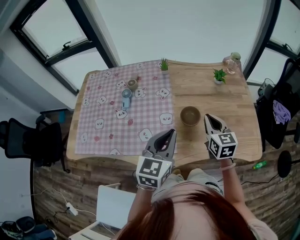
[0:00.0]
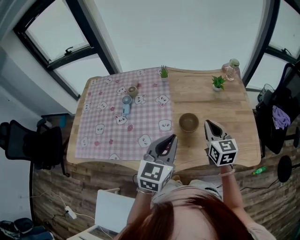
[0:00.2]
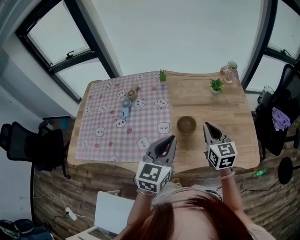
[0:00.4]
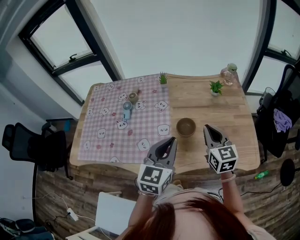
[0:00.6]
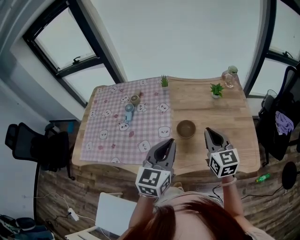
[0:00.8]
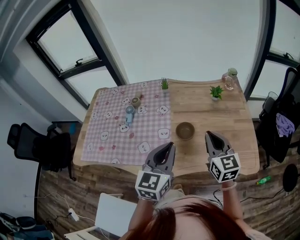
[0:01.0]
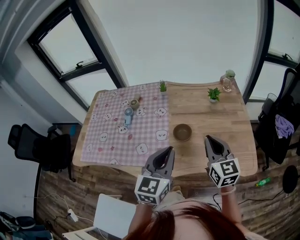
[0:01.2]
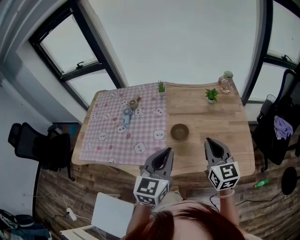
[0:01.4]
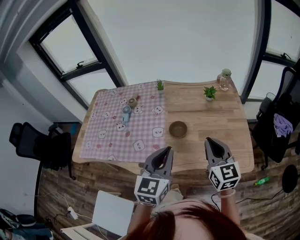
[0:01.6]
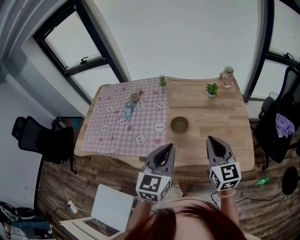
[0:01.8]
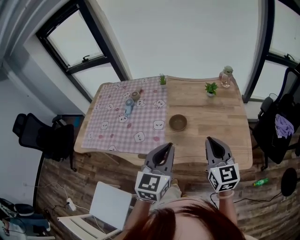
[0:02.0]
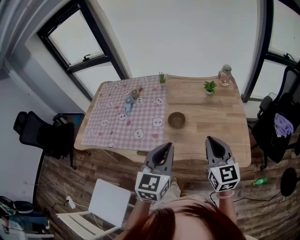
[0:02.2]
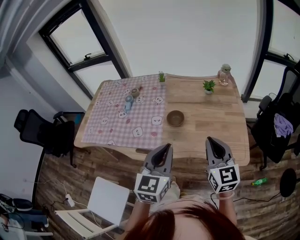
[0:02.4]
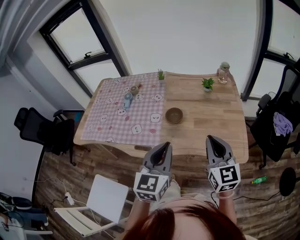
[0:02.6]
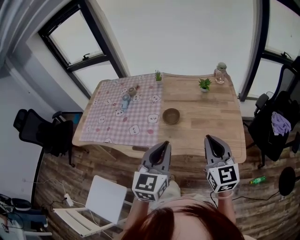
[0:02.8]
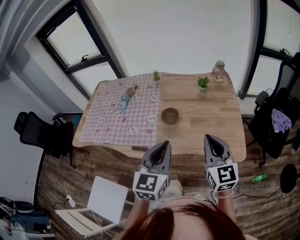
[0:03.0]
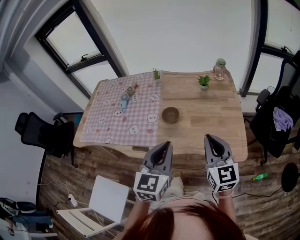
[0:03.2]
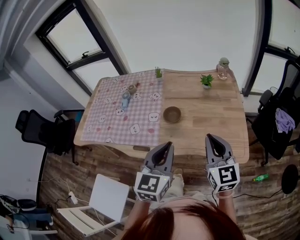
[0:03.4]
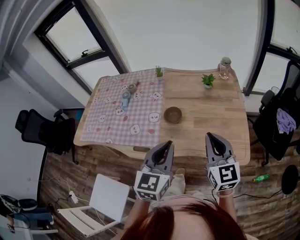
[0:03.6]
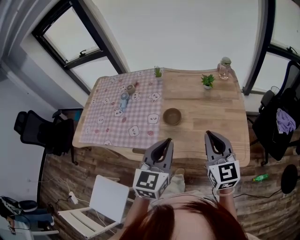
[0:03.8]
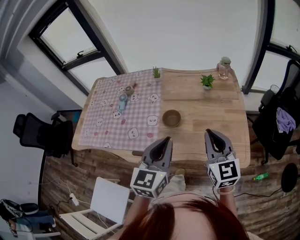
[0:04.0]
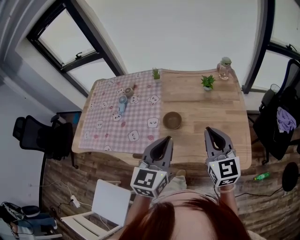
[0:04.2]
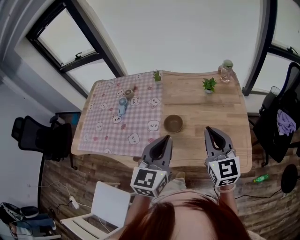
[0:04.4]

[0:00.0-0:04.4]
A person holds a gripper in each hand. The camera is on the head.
0:00.0 to 0:01.4: The left gripper is displaced to the right, backward and upward by about 10 cm; the right gripper goes roughly 15 cm upward, backward and to the right.
0:01.4 to 0:03.0: The grippers both shift backward and to the right by about 15 cm.
0:03.0 to 0:04.4: The grippers both shift forward by about 10 cm.

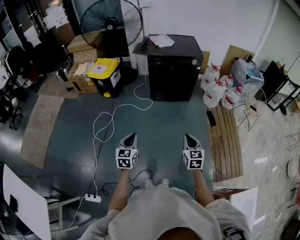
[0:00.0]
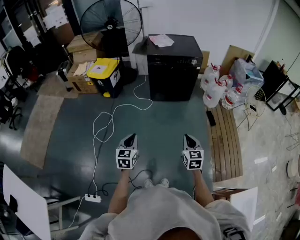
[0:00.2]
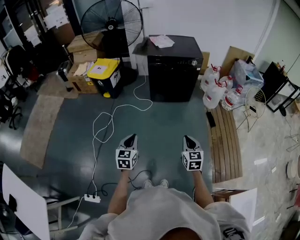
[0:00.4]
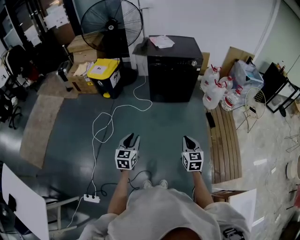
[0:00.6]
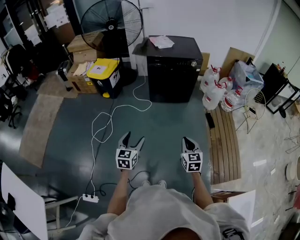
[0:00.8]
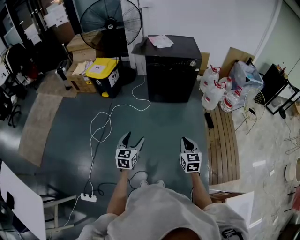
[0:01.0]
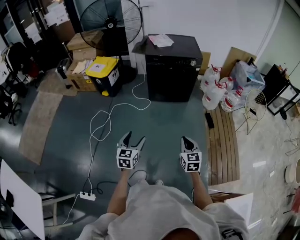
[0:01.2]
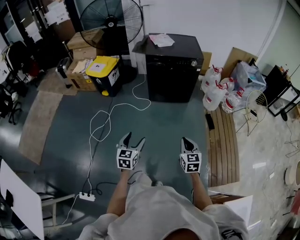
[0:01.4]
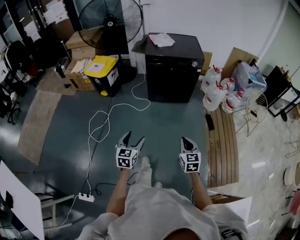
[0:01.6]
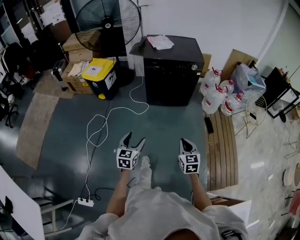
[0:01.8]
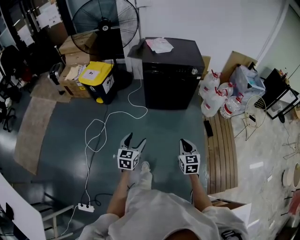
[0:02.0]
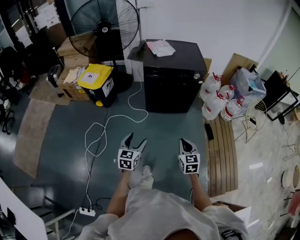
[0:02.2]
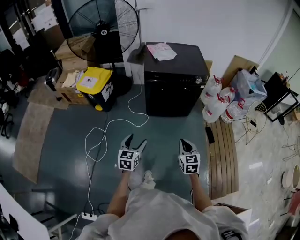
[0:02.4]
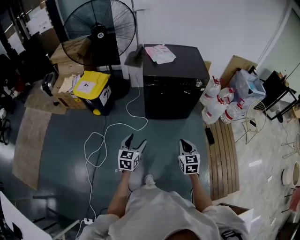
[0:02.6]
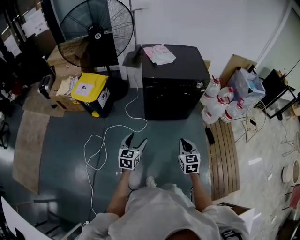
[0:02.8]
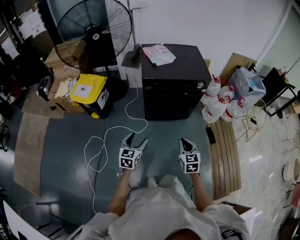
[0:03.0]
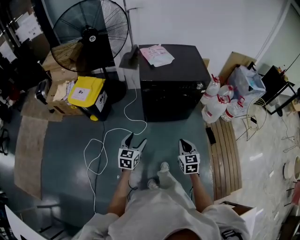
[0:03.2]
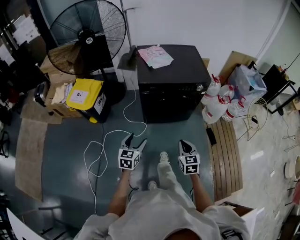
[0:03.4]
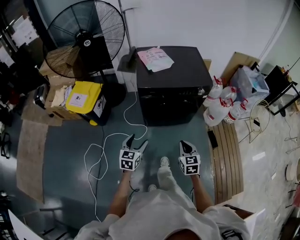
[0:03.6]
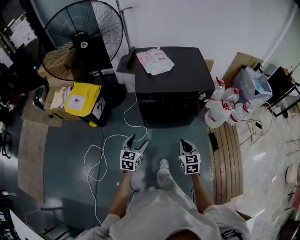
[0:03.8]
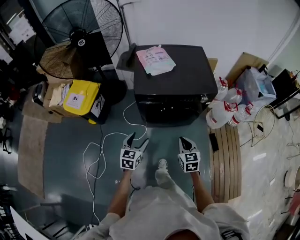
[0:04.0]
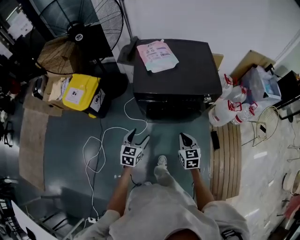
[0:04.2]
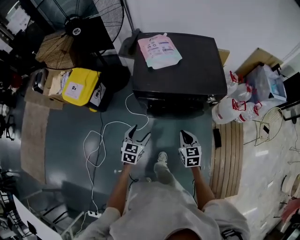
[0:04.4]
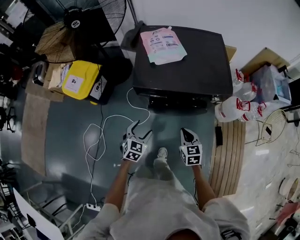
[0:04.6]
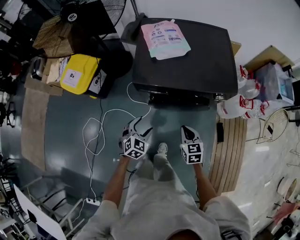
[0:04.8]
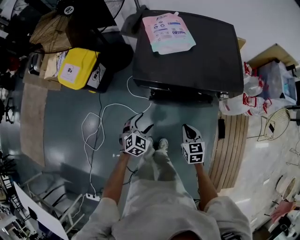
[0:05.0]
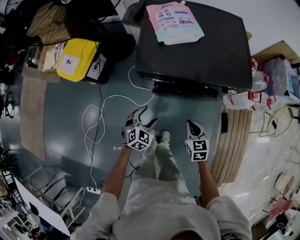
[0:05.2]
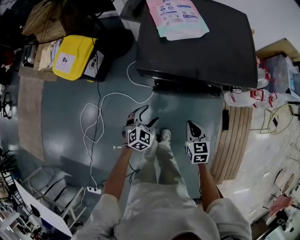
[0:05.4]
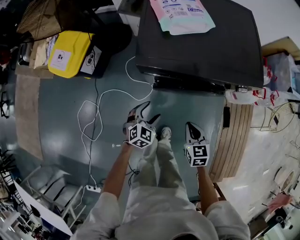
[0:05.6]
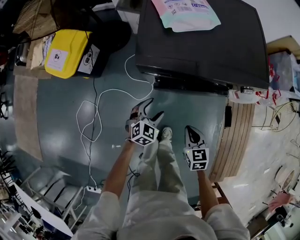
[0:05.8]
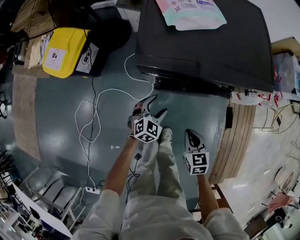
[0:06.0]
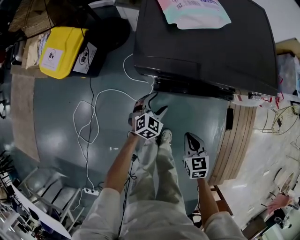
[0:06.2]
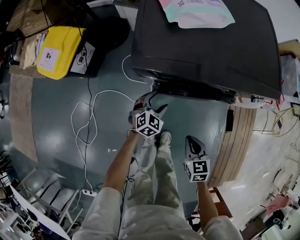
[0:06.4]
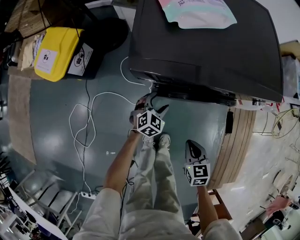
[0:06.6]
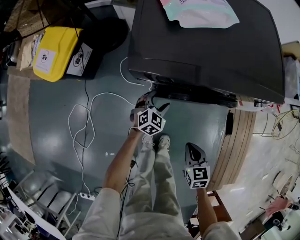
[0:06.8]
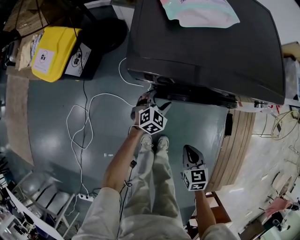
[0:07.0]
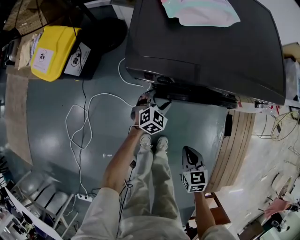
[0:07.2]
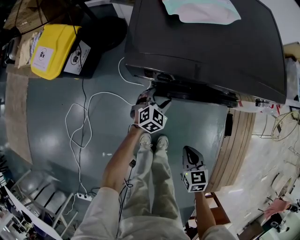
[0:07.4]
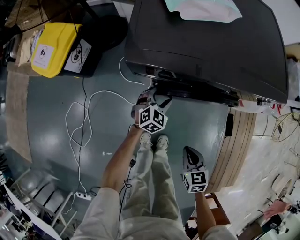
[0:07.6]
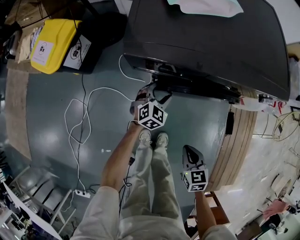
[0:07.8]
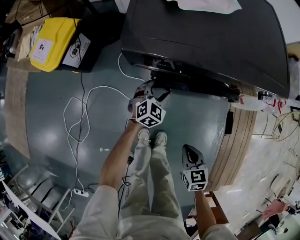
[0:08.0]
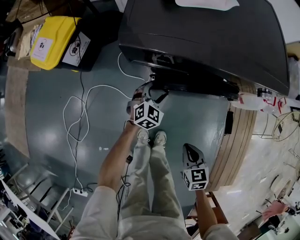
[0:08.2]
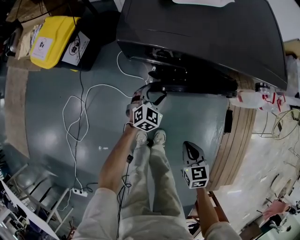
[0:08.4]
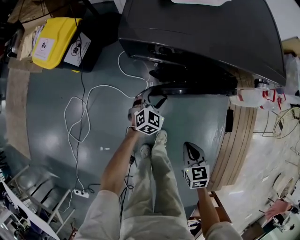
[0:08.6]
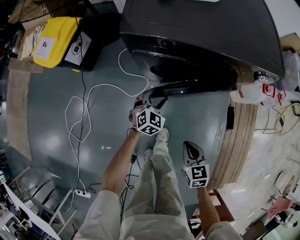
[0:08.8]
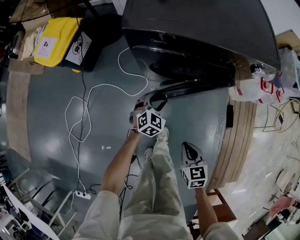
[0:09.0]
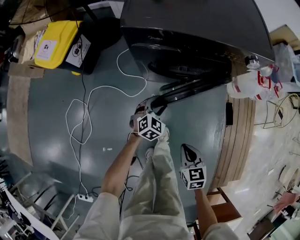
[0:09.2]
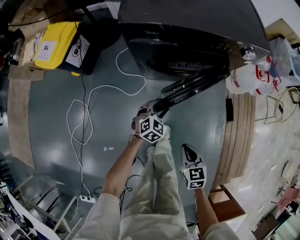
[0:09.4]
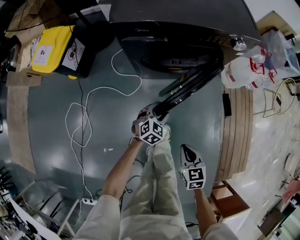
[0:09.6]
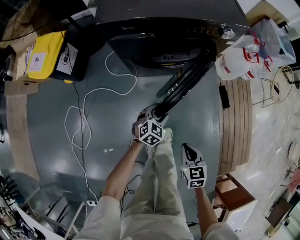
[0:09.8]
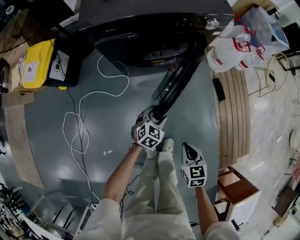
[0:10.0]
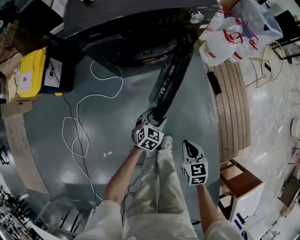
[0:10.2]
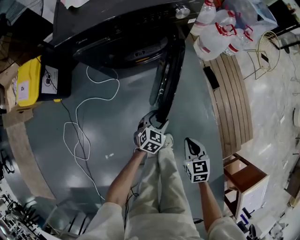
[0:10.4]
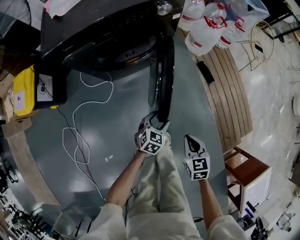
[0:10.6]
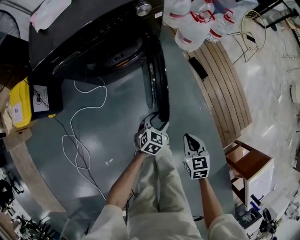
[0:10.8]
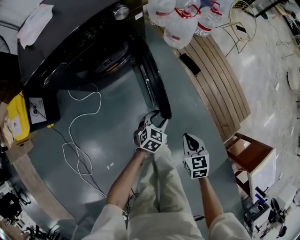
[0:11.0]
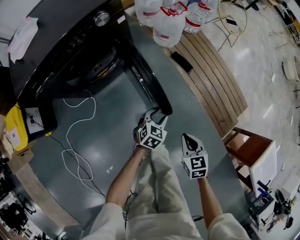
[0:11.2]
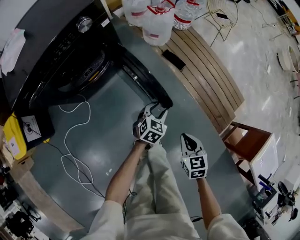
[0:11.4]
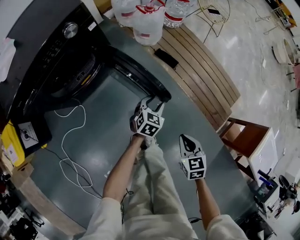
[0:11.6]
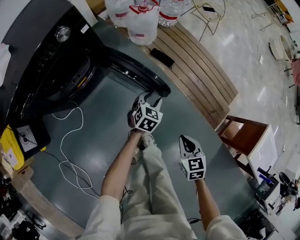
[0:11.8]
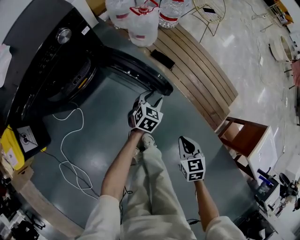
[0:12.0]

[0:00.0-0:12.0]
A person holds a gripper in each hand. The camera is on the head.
0:00.0 to 0:01.6: The left gripper heads forward and to the right, covering roughly 10 cm, and opens. Meanwhile the right gripper is displaced forward by roughly 5 cm.
0:01.6 to 0:03.0: The two grippers go some 35 cm forward.
0:03.0 to 0:04.4: The grippers both shift forward by approximately 30 cm.
0:04.4 to 0:06.0: The right gripper is displaced downward by some 20 cm; the left gripper shifts about 25 cm downward and forward, and turns by roughly 30 degrees.
0:06.0 to 0:07.6: The right gripper moves downward, roughly 10 cm. Meanwhile the left gripper is displaced downward and forward by approximately 15 cm.
0:07.6 to 0:09.0: The grippers both shift backward by approximately 10 cm.
0:09.0 to 0:10.4: The right gripper ends up some 20 cm from where it was, and swivels some 20 degrees; the left gripper shifts by some 30 cm, and turns by about 20 degrees.
0:10.4 to 0:12.0: The right gripper moves about 20 cm, and turns by roughly 30 degrees. The left gripper shifts by about 30 cm, and rotates about 20 degrees.

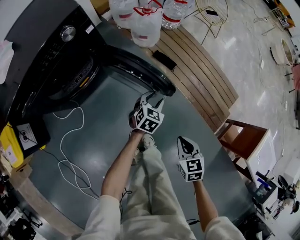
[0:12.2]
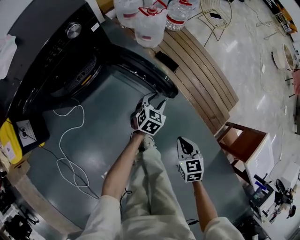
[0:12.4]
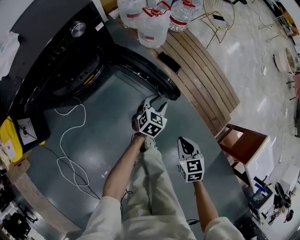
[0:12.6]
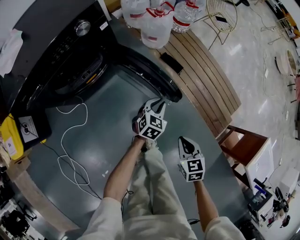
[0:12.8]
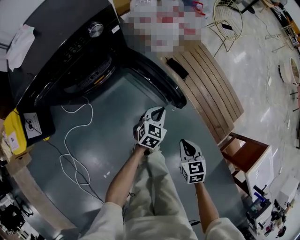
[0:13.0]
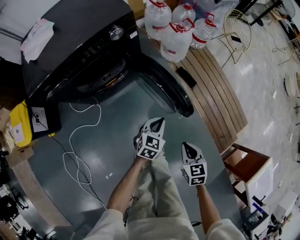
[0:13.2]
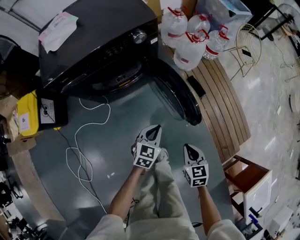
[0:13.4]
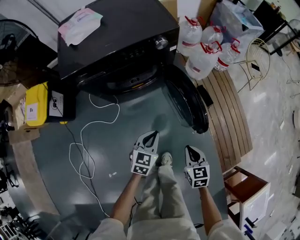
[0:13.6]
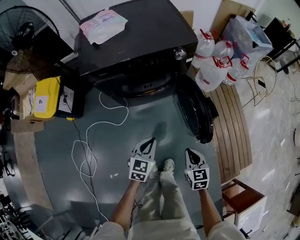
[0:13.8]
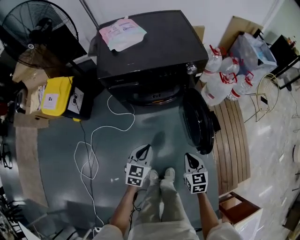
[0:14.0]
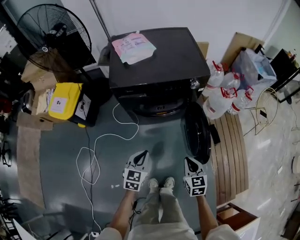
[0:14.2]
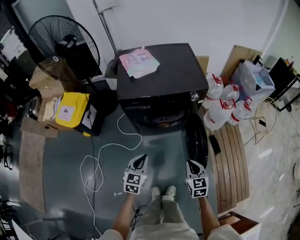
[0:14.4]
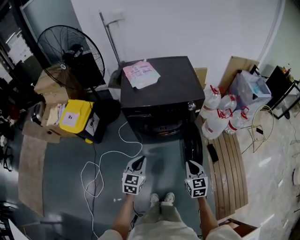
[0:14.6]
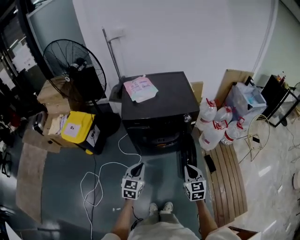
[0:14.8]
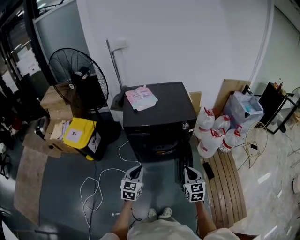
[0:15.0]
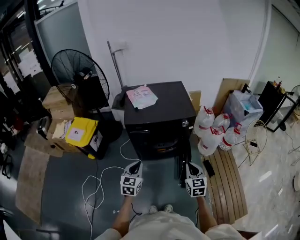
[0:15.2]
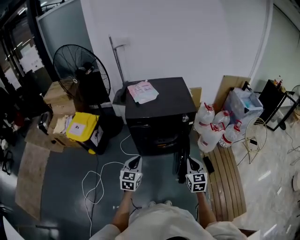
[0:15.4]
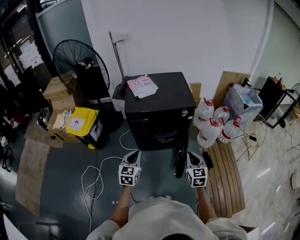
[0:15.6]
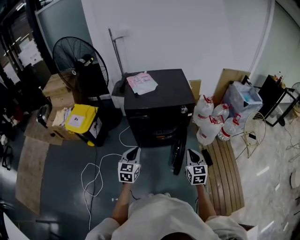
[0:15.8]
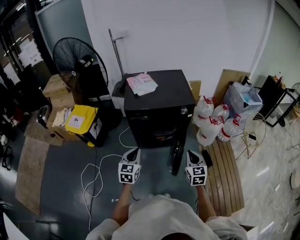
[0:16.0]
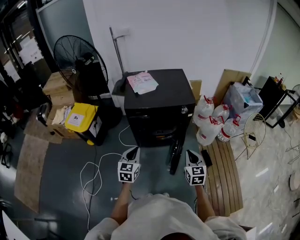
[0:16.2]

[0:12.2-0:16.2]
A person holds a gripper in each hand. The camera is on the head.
0:12.2 to 0:13.6: The left gripper ends up some 30 cm from where it was, swivels approximately 30 degrees, and closes, while the right gripper ends up some 20 cm from where it was, and rotates about 20 degrees.
0:13.6 to 0:14.8: The left gripper goes some 30 cm upward and to the left, and turns by roughly 30 degrees; the right gripper goes some 25 cm upward, and changes its angle by roughly 20 degrees.
0:14.8 to 0:16.2: The grippers both shift upward by roughly 5 cm.

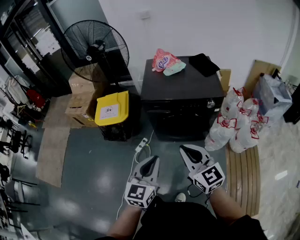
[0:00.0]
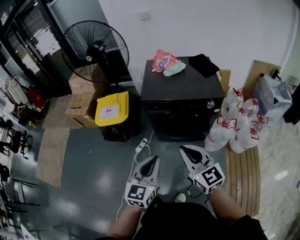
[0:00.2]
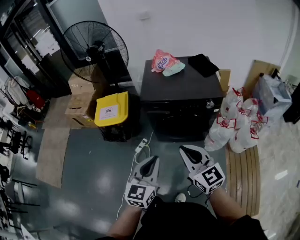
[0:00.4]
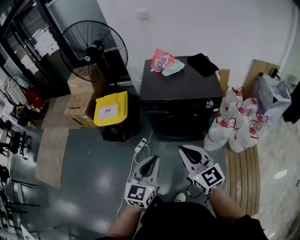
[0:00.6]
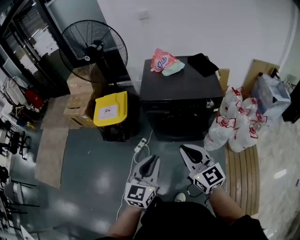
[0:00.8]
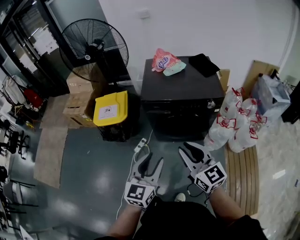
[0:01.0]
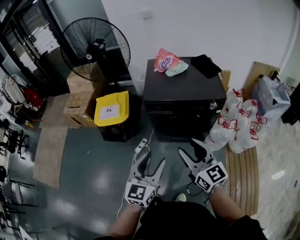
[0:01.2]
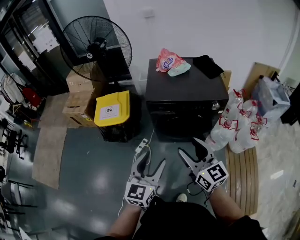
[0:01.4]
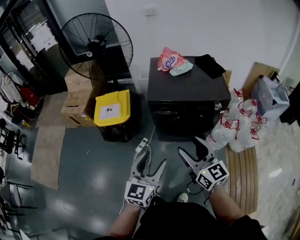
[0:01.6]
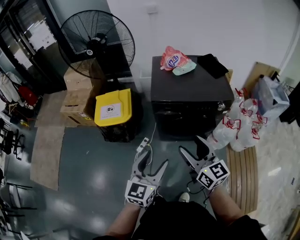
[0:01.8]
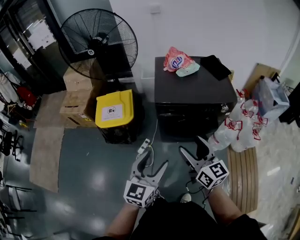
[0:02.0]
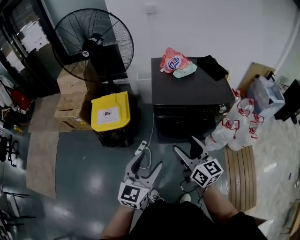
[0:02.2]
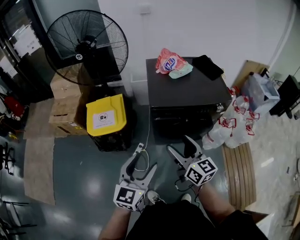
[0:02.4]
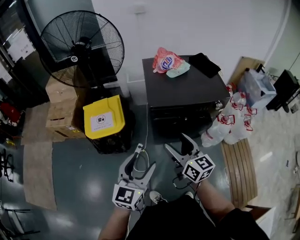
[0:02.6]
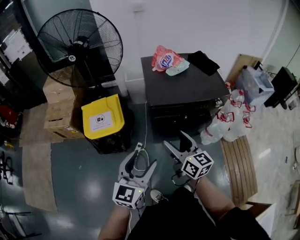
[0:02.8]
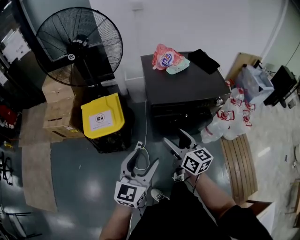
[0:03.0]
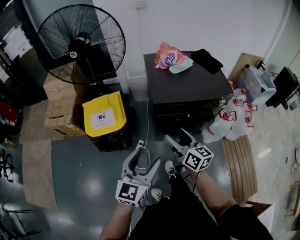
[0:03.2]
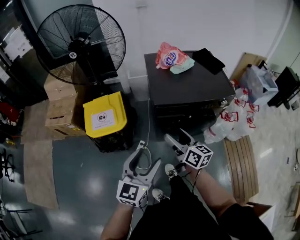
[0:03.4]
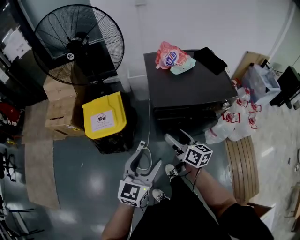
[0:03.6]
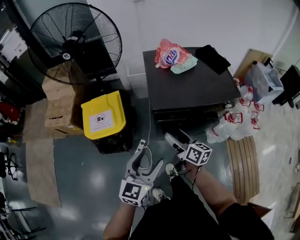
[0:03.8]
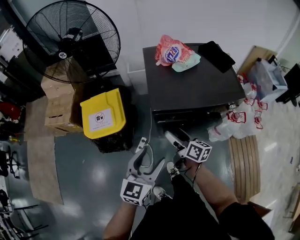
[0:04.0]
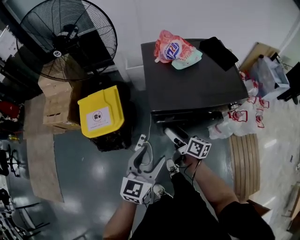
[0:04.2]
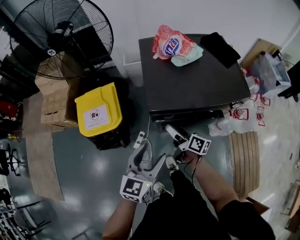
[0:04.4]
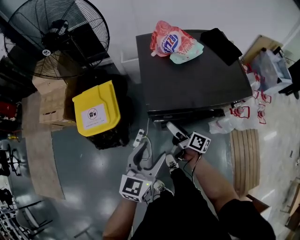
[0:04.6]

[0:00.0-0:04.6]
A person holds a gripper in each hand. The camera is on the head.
0:00.0 to 0:01.6: The right gripper shifts roughly 5 cm to the left and forward, and opens its fingers. The left gripper shifts roughly 5 cm to the left, and opens its fingers.
0:01.6 to 0:03.0: The right gripper is displaced to the left, forward and downward by roughly 20 cm, while the left gripper is displaced to the left and forward by roughly 15 cm.
0:03.0 to 0:04.6: Both grippers move forward and downward, about 25 cm. The right gripper rolls clockwise, seen from behind, by approximately 40 degrees.
